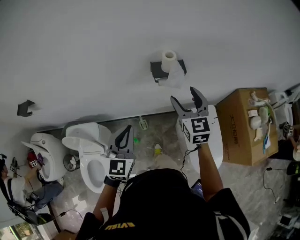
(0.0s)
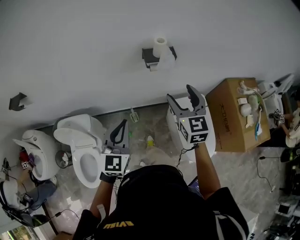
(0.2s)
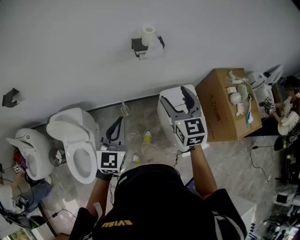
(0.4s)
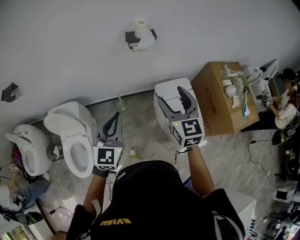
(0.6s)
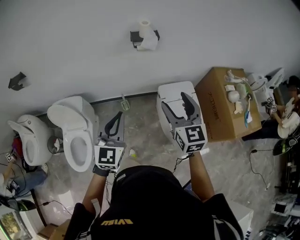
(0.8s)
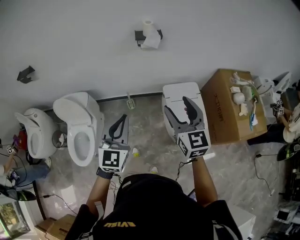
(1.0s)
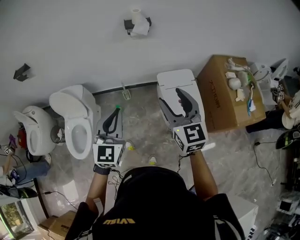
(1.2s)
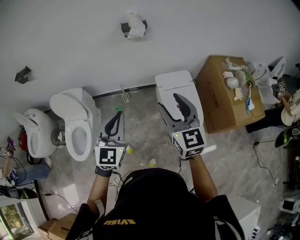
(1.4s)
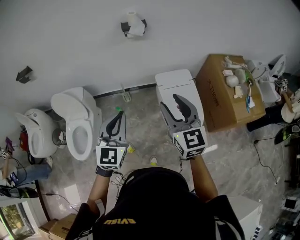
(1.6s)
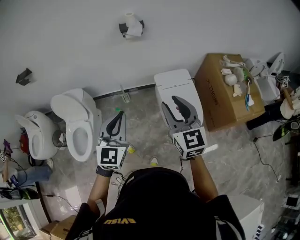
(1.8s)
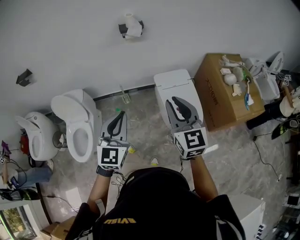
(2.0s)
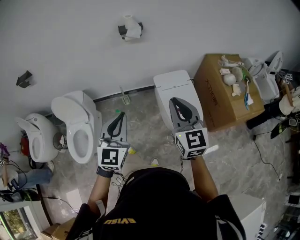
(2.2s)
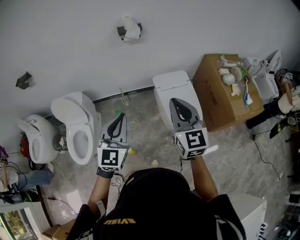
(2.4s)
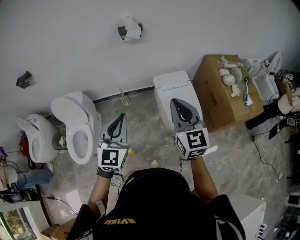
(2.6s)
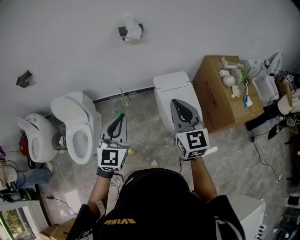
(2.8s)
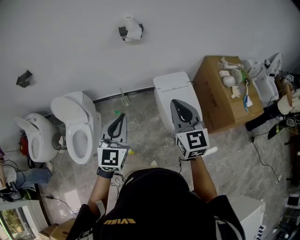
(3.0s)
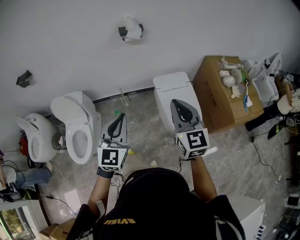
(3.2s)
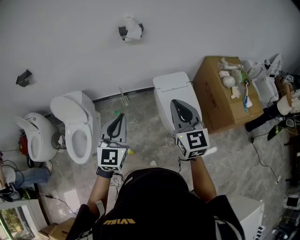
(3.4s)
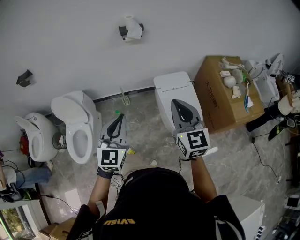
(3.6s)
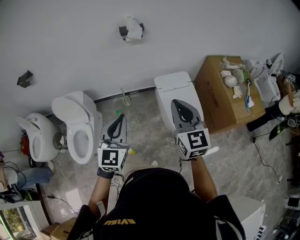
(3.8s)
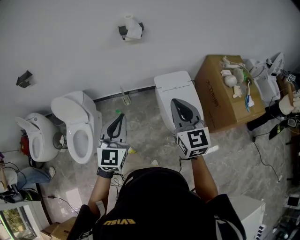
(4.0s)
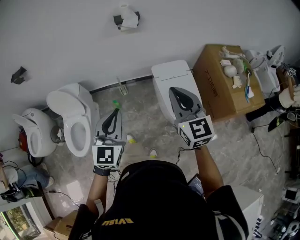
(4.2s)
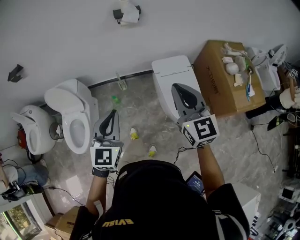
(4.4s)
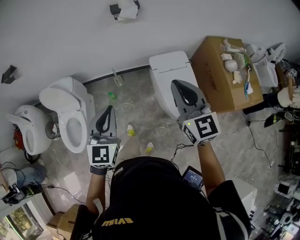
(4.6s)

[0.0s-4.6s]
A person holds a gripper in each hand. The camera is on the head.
0.0s to 1.6s: Both grippers travel together backward, approximately 40 cm.
1.6s to 3.0s: The right gripper closes up.
3.0s to 4.6s: Both grippers move forward, approximately 5 cm.

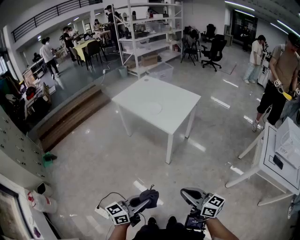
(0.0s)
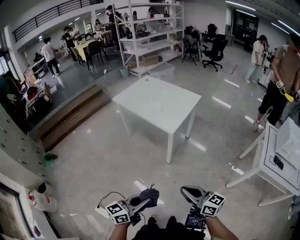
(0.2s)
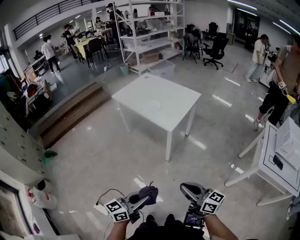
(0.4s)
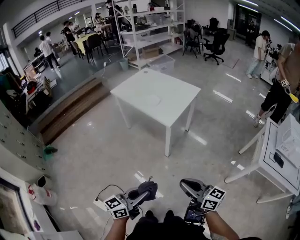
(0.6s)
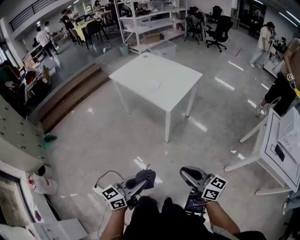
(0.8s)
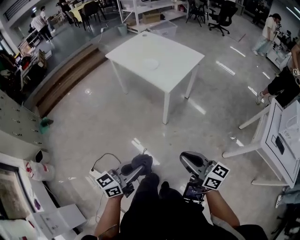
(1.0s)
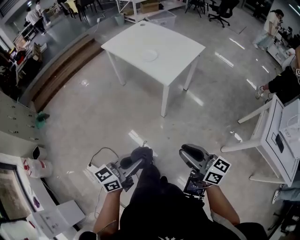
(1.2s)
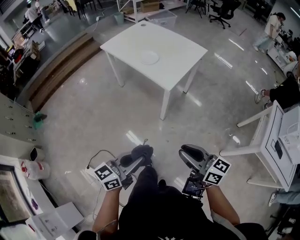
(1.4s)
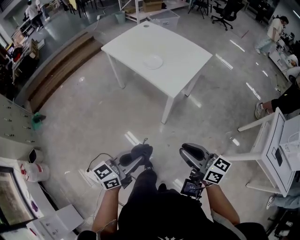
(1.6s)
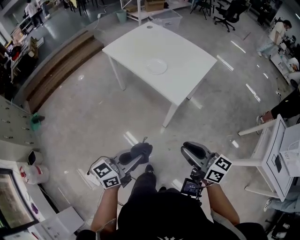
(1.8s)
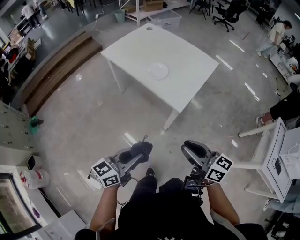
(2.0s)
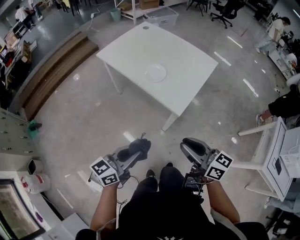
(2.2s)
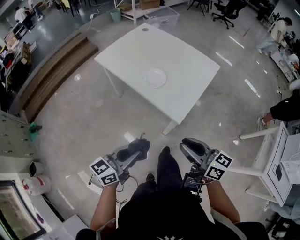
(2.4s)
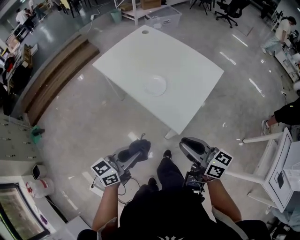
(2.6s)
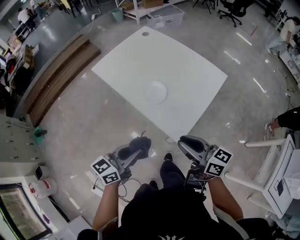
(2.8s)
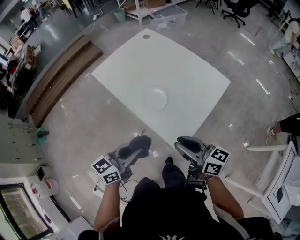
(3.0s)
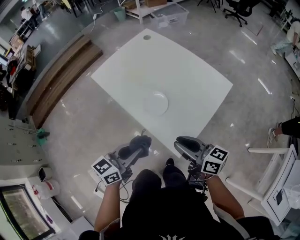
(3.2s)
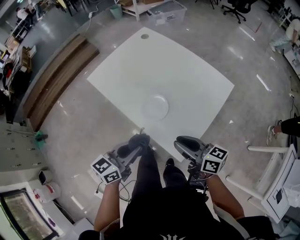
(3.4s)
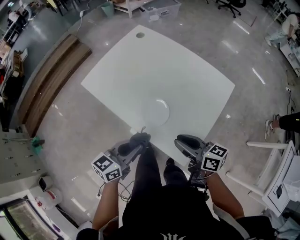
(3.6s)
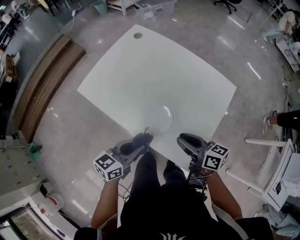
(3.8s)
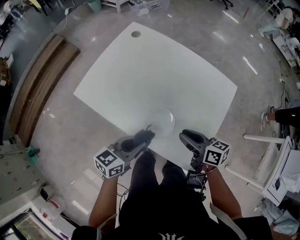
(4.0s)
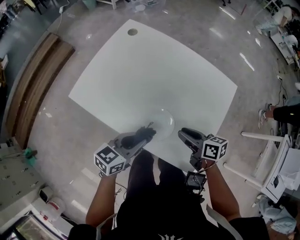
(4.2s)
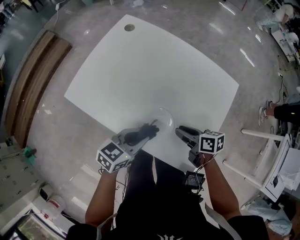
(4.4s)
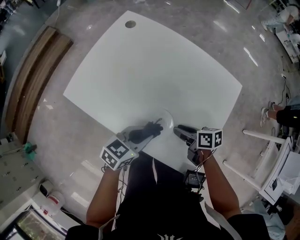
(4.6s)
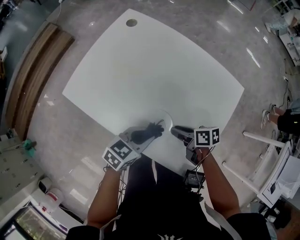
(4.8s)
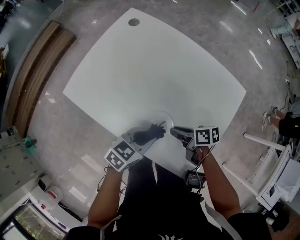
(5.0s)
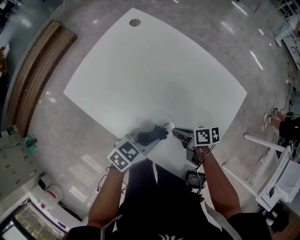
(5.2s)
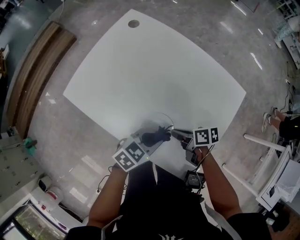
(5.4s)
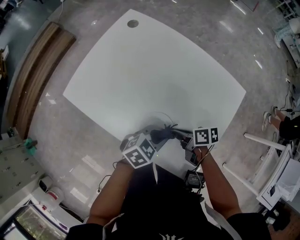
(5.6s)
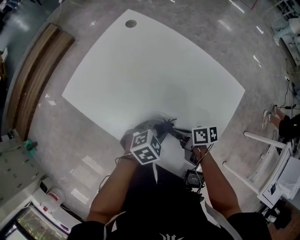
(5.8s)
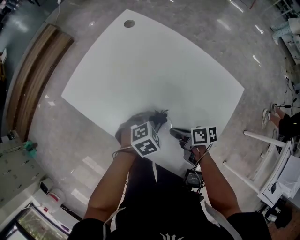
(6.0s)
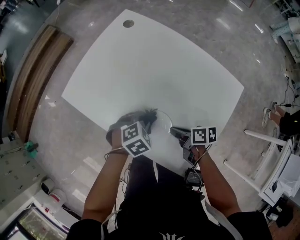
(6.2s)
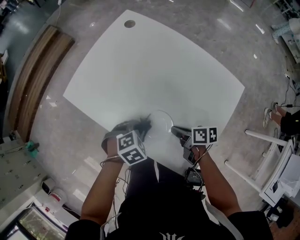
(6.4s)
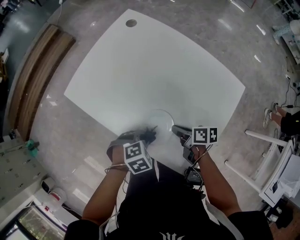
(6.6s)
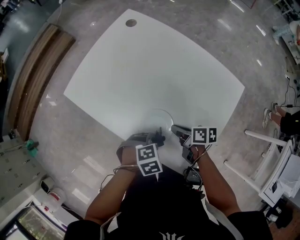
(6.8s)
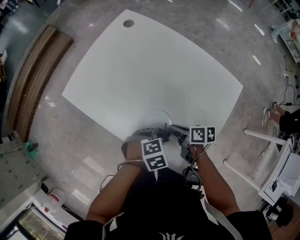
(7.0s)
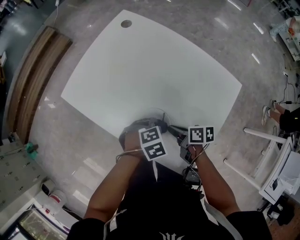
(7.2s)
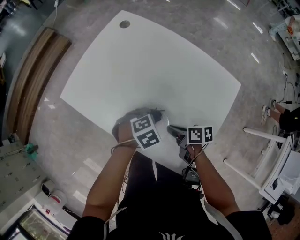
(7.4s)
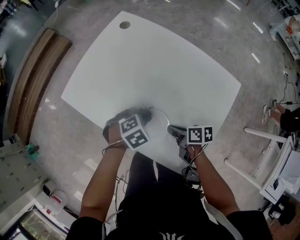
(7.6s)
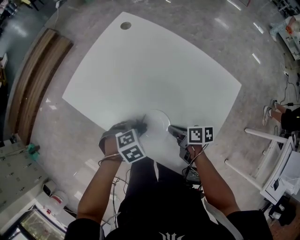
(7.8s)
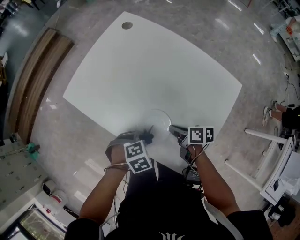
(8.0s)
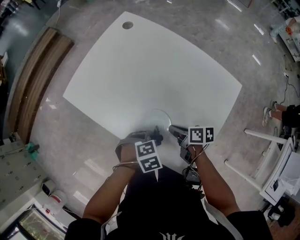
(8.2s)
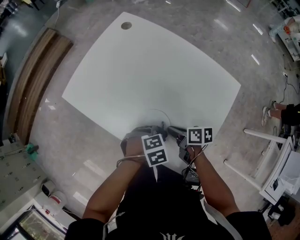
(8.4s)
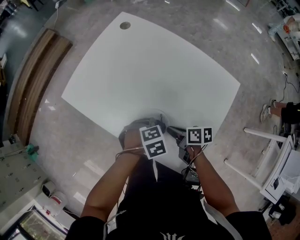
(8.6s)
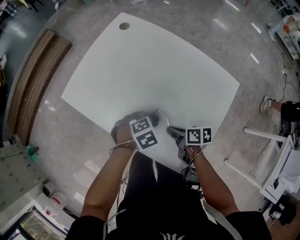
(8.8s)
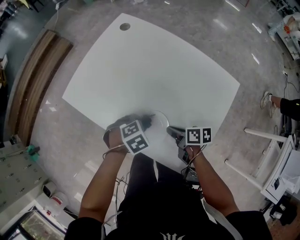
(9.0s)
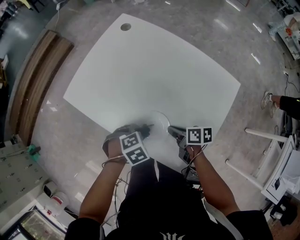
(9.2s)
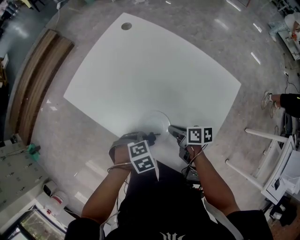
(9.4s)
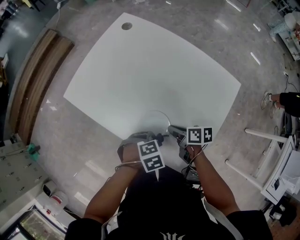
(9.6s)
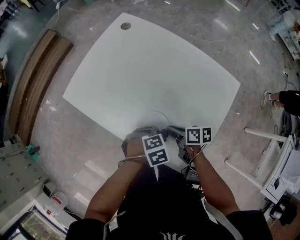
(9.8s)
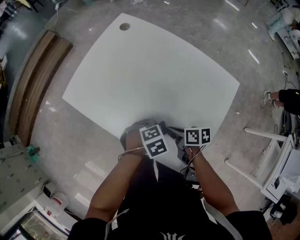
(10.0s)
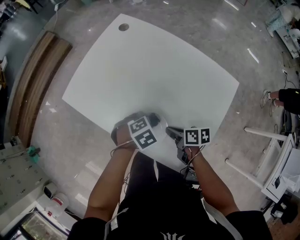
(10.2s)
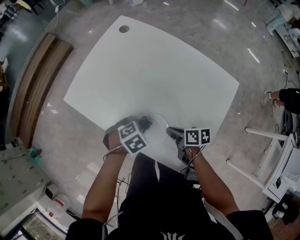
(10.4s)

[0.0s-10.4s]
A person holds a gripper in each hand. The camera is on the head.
0.0s to 1.4s: The grippers both shift forward by about 10 cm.
1.4s to 3.0s: The two grippers travel together, forward, roughly 50 cm.
3.0s to 4.4s: Both grippers travel together forward and downward, roughly 30 cm. The left gripper rotates approximately 30 degrees. The right gripper angles its fingers downward, by approximately 30 degrees.
4.4s to 6.0s: The right gripper moves downward, roughly 5 cm, and closes up. The left gripper moves roughly 15 cm, and points its fingers about 30 degrees further downward.

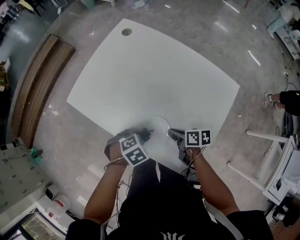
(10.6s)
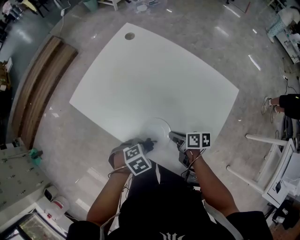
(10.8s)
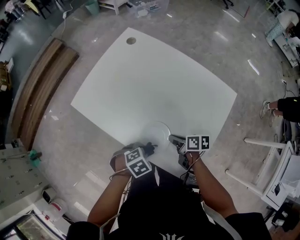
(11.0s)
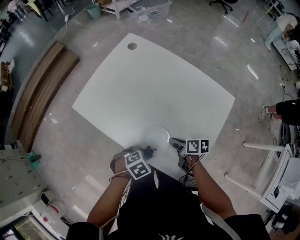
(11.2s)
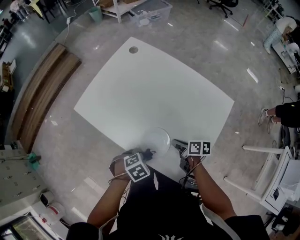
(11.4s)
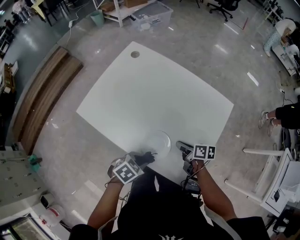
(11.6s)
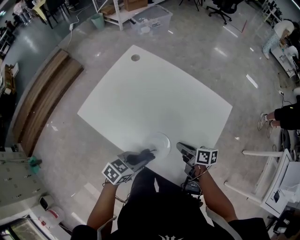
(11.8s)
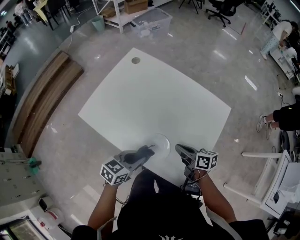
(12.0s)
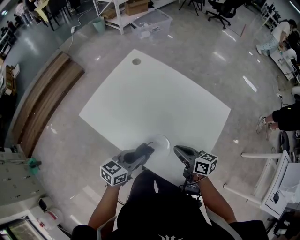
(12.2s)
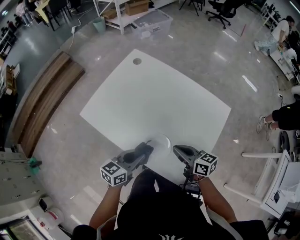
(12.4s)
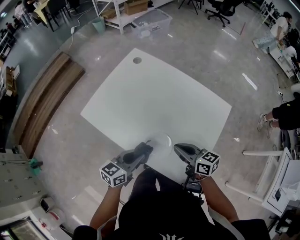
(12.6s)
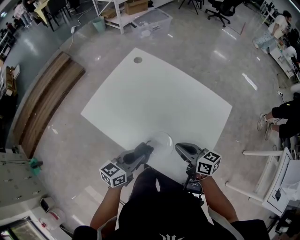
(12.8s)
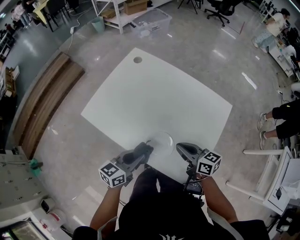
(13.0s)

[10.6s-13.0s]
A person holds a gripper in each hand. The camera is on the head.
10.6s to 11.8s: Both grippers move upward, approximately 10 cm. The left gripper points its fingers about 40 degrees further upward.
11.8s to 13.0s: The right gripper travels upward by approximately 10 cm, and changes its angle by about 30 degrees. The left gripper moves upward, approximately 5 cm, and rotates approximately 30 degrees.

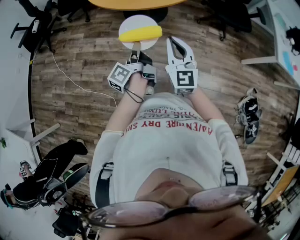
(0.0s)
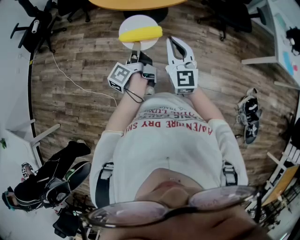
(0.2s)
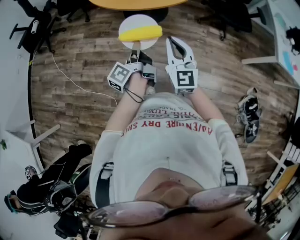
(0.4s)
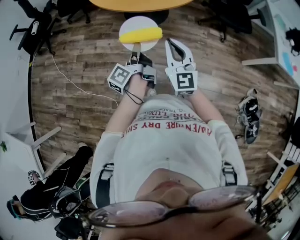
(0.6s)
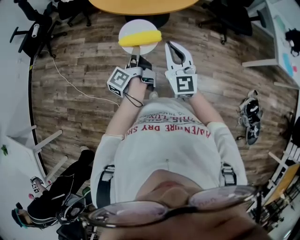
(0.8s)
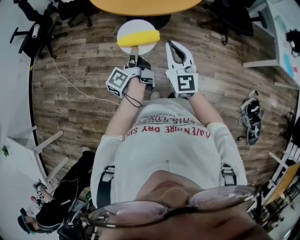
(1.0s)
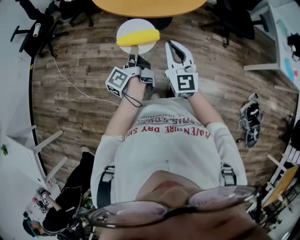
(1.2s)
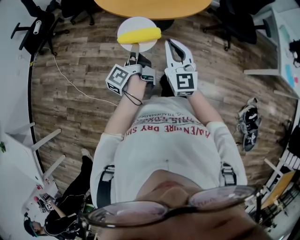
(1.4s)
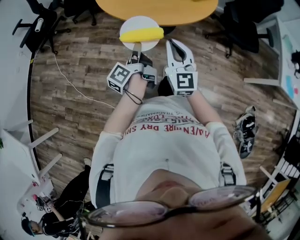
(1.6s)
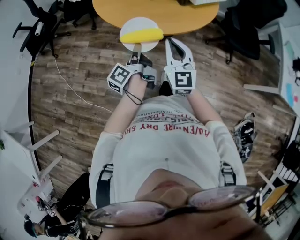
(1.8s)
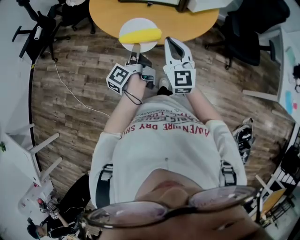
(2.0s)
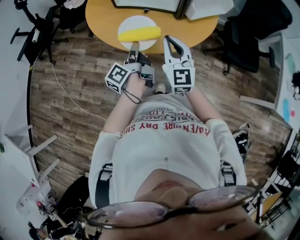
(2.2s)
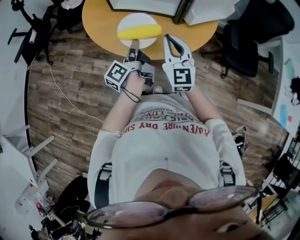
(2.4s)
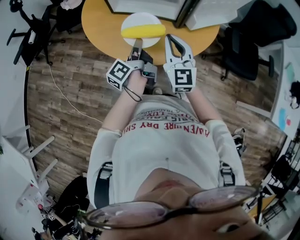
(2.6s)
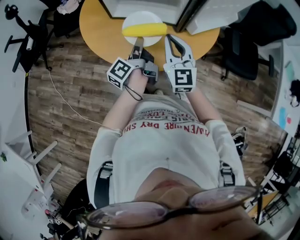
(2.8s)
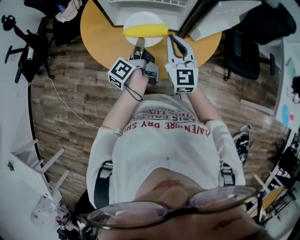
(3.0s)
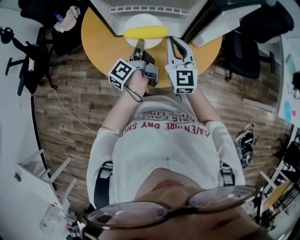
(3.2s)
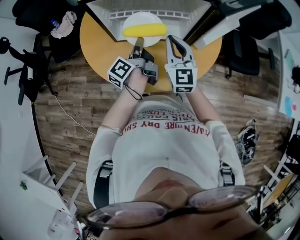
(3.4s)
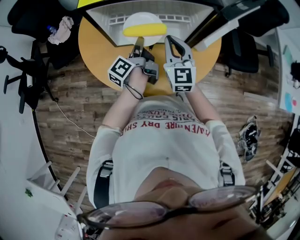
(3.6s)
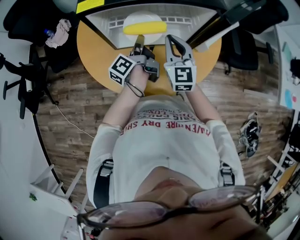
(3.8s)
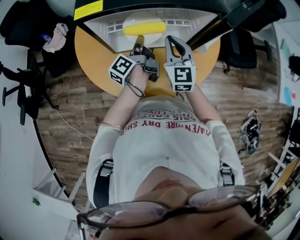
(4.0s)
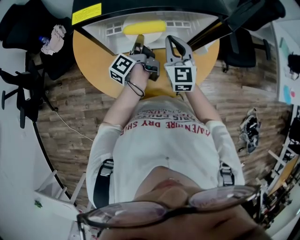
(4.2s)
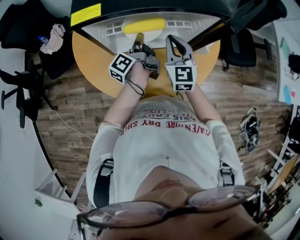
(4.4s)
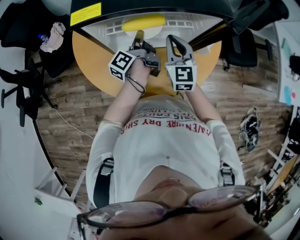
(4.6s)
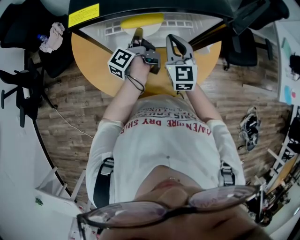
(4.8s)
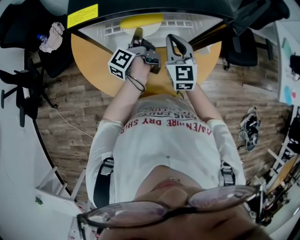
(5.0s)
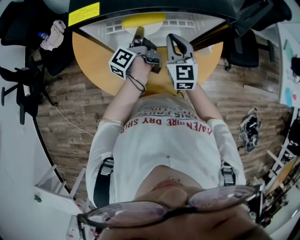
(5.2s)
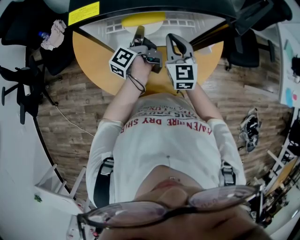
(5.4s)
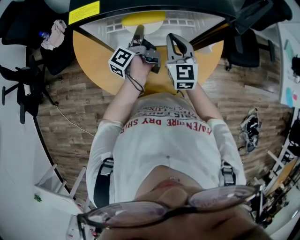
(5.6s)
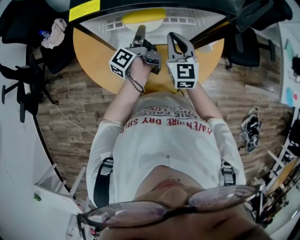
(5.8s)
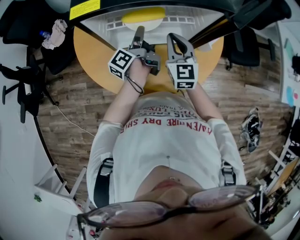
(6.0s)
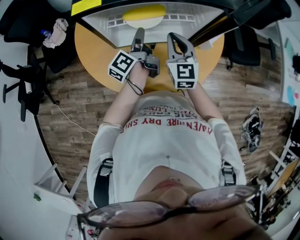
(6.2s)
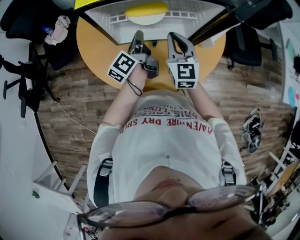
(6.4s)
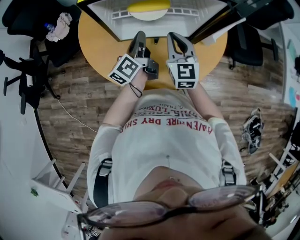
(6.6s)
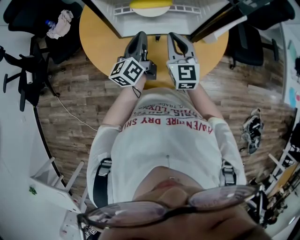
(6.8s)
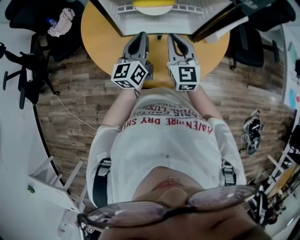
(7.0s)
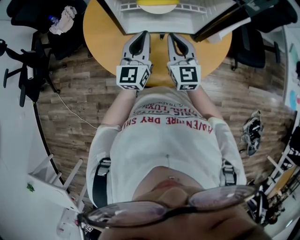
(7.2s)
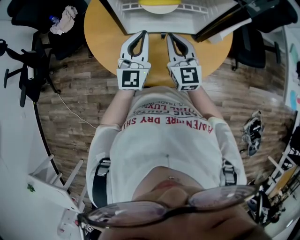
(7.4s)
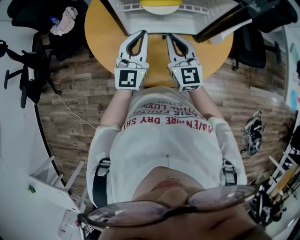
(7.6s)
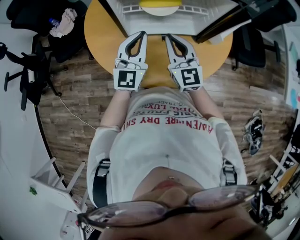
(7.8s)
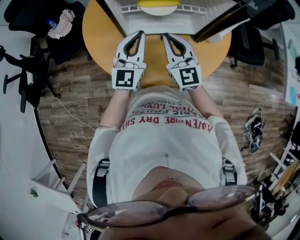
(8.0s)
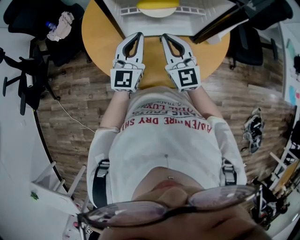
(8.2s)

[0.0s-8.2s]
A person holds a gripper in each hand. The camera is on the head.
0.0s to 1.6s: The right gripper ends up about 15 cm from where it was.
1.6s to 3.2s: The right gripper changes place by approximately 40 cm.
3.2s to 5.0s: The right gripper ends up some 10 cm from where it was.
5.0s to 6.6s: The right gripper shifts by approximately 5 cm.
6.6s to 8.2s: The right gripper moves approximately 5 cm.
